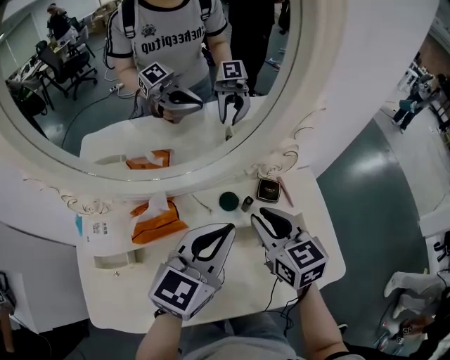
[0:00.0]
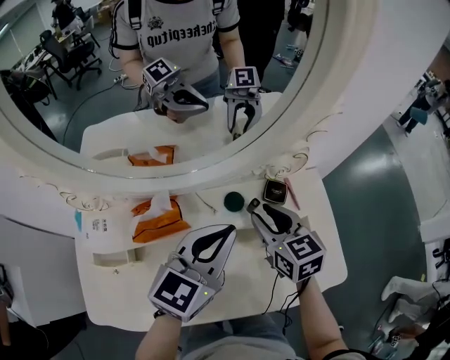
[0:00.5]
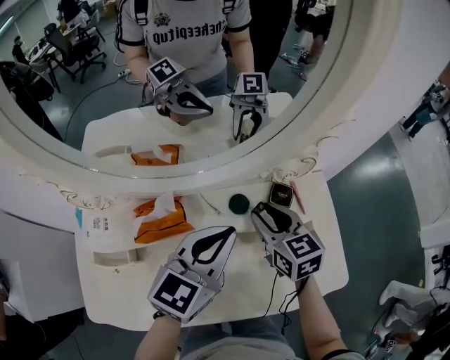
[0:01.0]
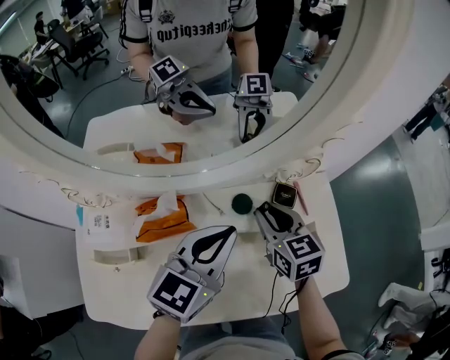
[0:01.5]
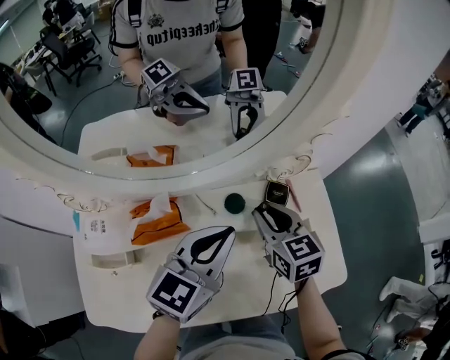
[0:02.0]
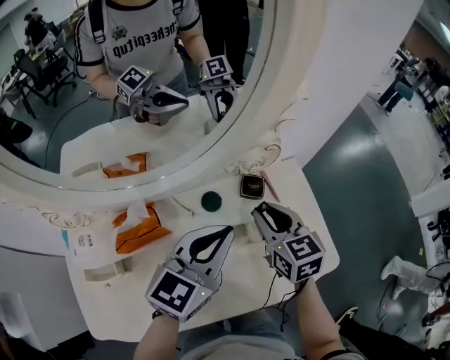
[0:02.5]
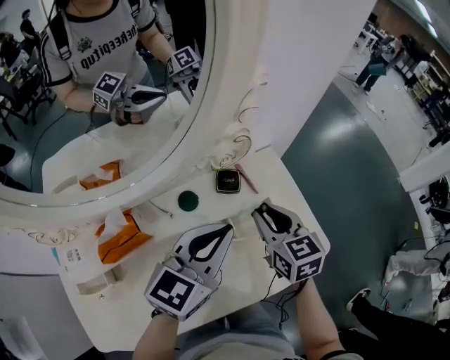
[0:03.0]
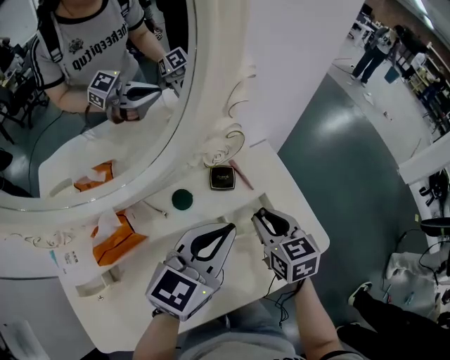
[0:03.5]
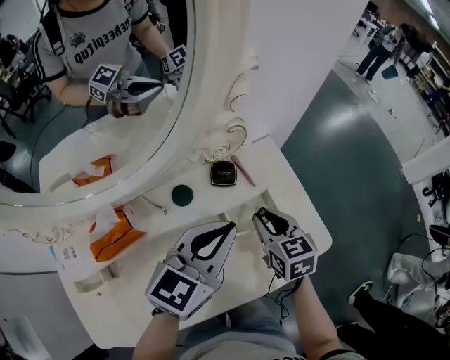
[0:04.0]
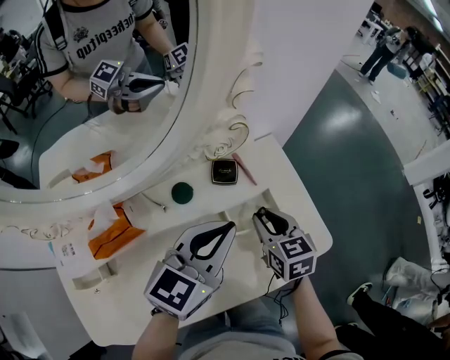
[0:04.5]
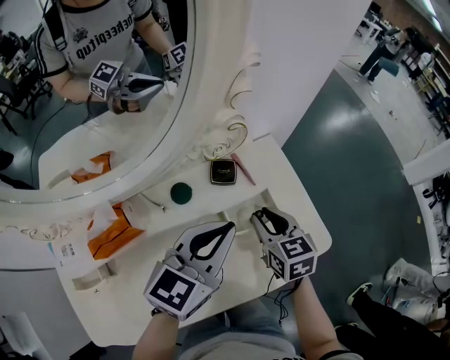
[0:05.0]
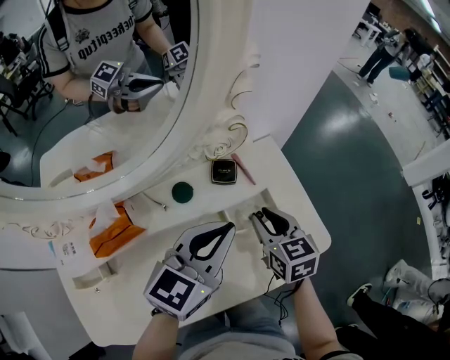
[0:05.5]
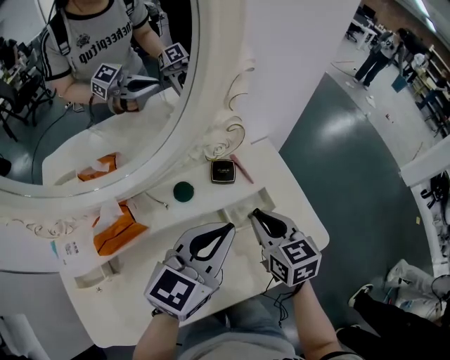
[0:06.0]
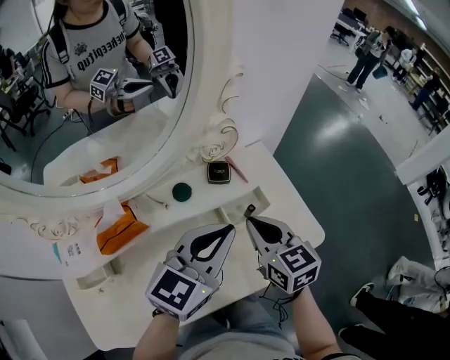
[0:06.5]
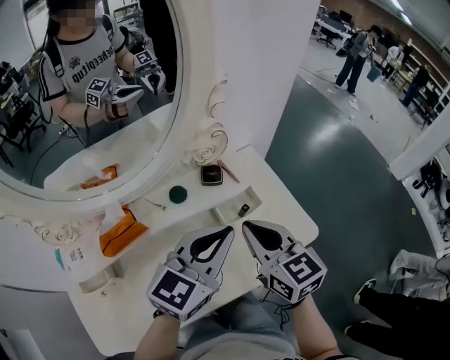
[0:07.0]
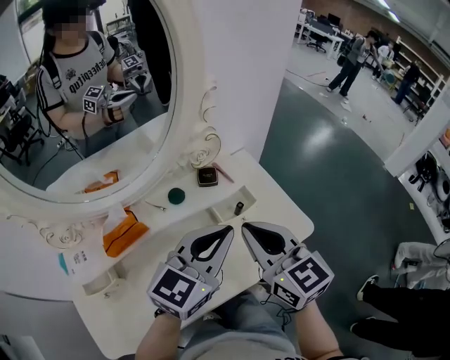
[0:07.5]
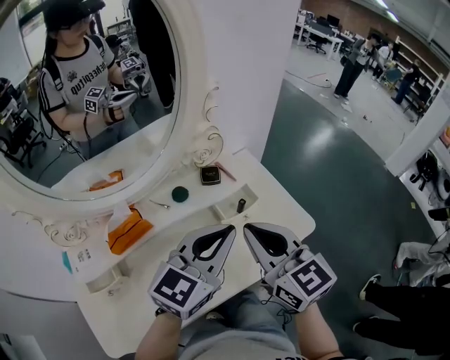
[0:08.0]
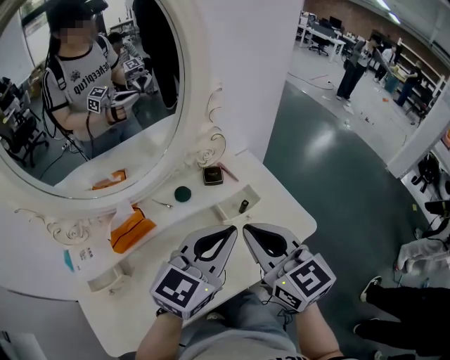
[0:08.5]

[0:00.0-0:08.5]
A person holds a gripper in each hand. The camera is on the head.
0.0 to 2.0 s: The right gripper ends up approximately 5 cm from where it was.
2.0 to 4.0 s: The left gripper moves to the right, approximately 10 cm; the right gripper heads to the right and downward, covering about 15 cm.
4.0 to 6.5 s: The right gripper heads upward and backward, covering roughly 10 cm, and closes.
6.5 to 8.5 s: The right gripper goes some 15 cm upward and backward. The left gripper shifts approximately 5 cm backward.

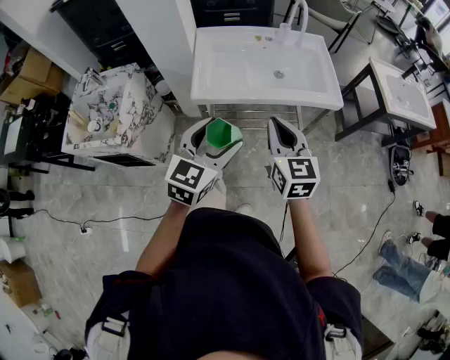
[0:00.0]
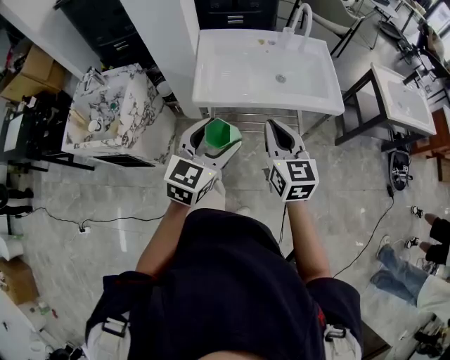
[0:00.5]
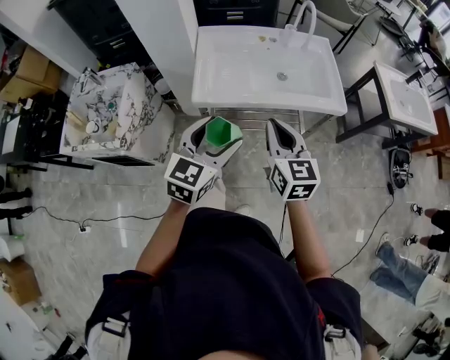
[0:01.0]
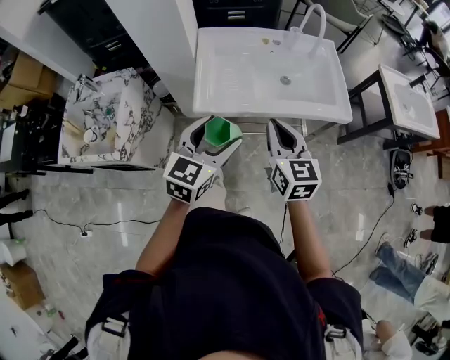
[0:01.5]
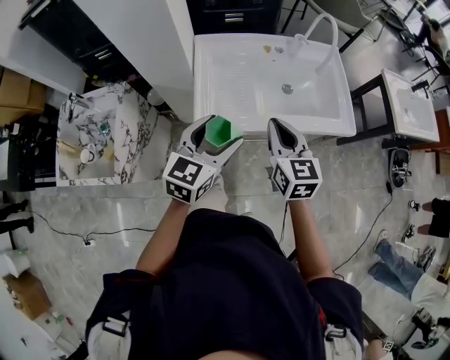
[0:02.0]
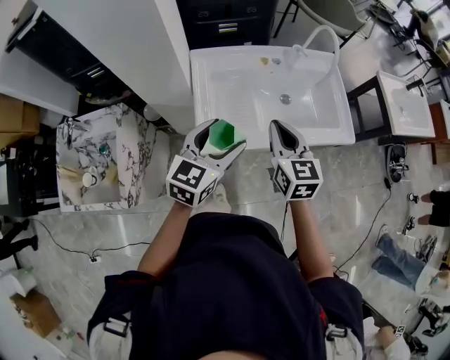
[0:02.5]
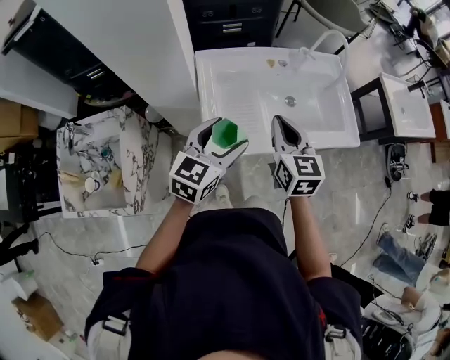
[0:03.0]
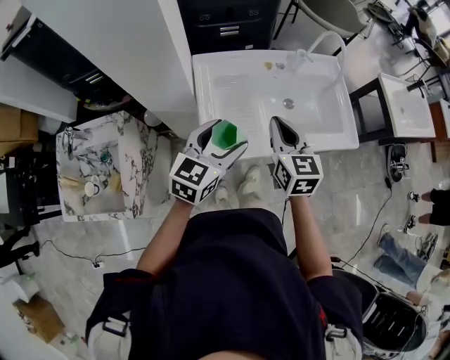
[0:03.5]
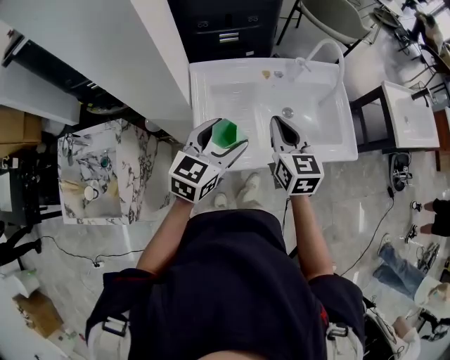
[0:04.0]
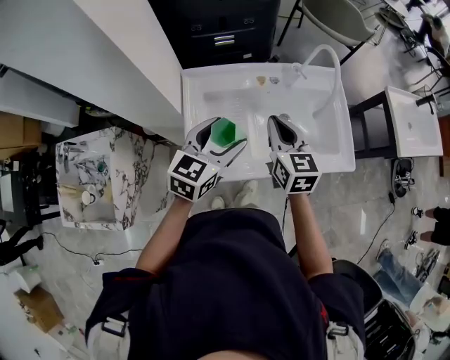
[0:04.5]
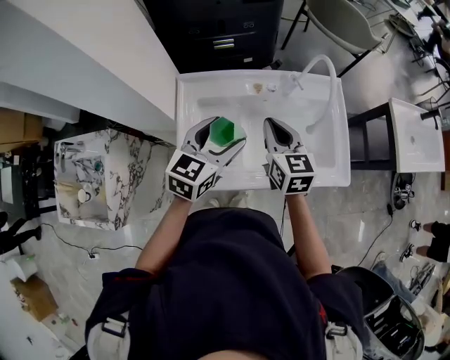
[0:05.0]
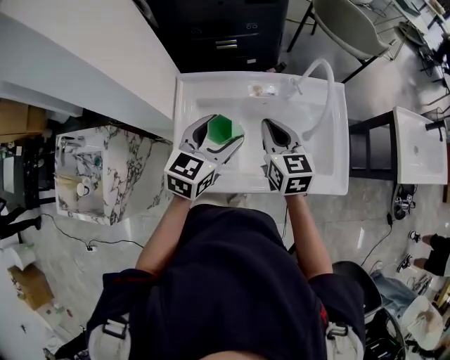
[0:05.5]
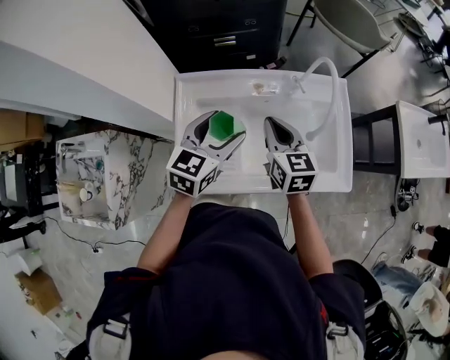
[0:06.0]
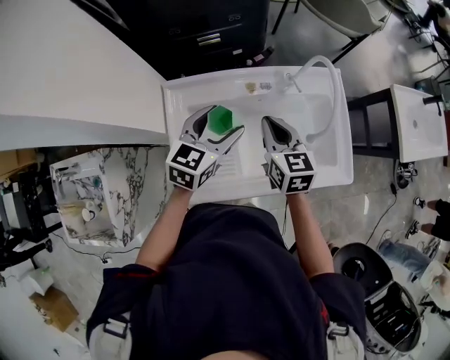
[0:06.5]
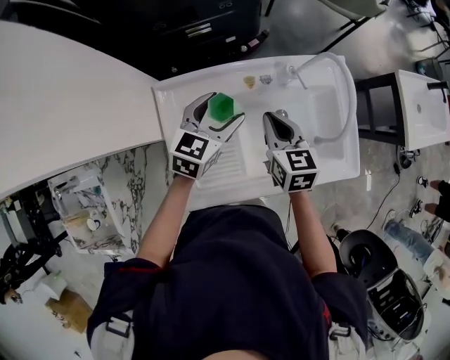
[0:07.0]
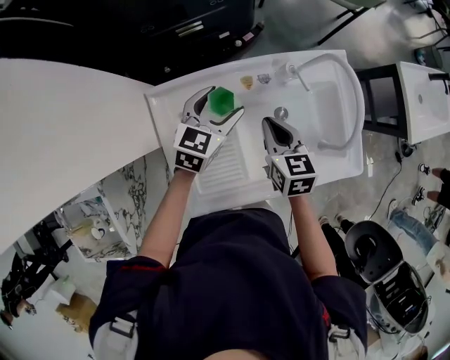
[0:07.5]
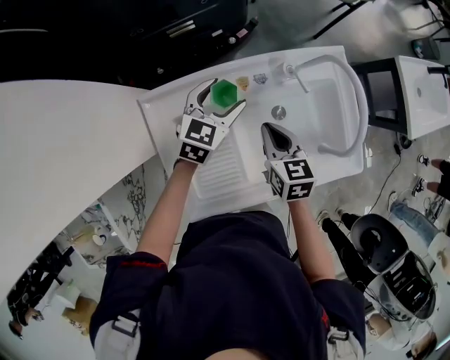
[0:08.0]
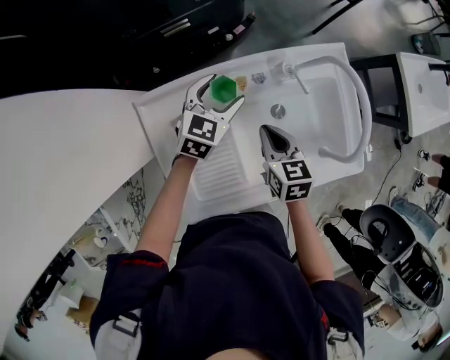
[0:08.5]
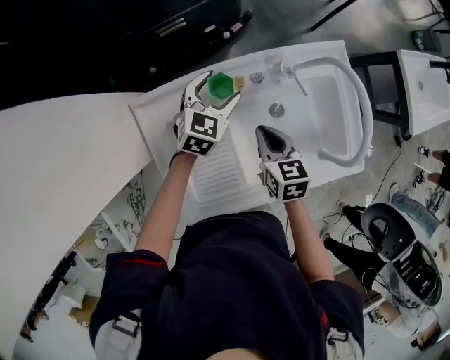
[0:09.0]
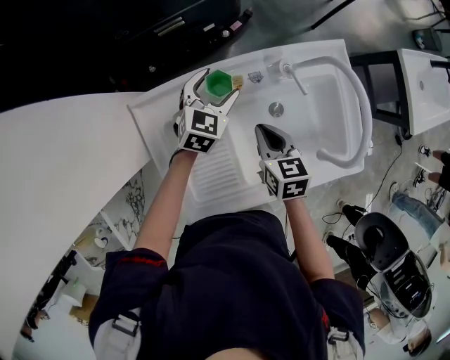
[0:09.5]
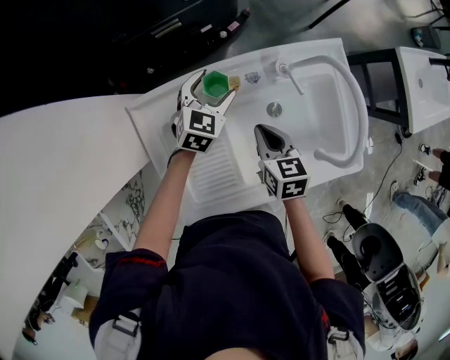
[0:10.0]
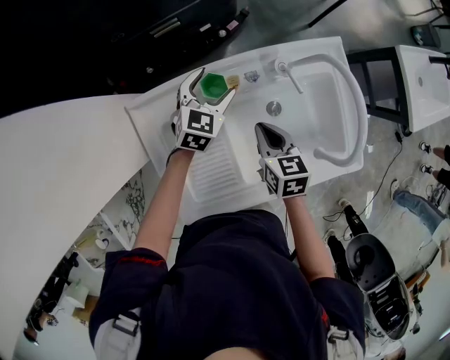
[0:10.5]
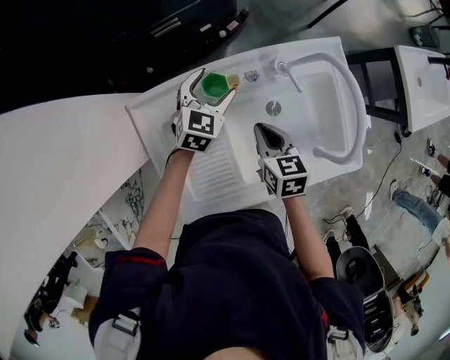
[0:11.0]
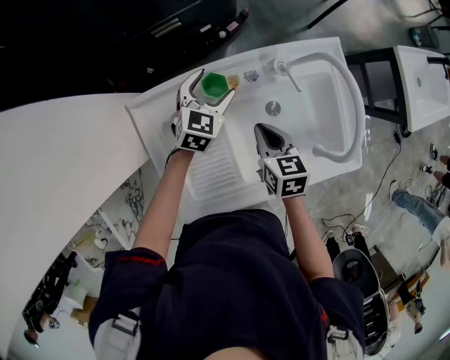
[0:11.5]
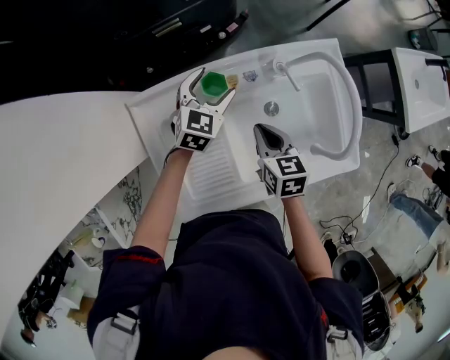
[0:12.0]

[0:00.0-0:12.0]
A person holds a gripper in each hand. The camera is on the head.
0.0 to 2.0 s: The two grippers go approximately 20 cm forward and to the left.
2.0 to 4.0 s: The two grippers go approximately 15 cm forward.
4.0 to 6.0 s: The left gripper moves forward and to the right, roughly 15 cm. The right gripper goes approximately 10 cm forward.
6.0 to 8.0 s: The left gripper heads forward and downward, covering about 20 cm. The right gripper moves downward, about 10 cm, and swivels about 20 degrees.
8.0 to 10.0 s: The left gripper is displaced downward by about 5 cm.
10.0 to 12.0 s: The grippers move only a little.

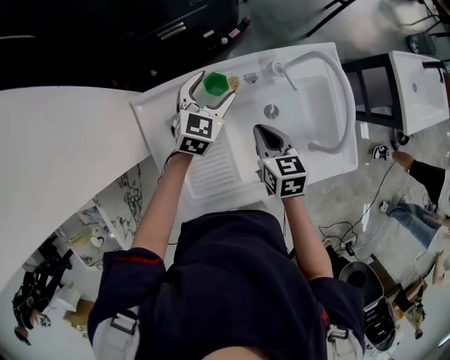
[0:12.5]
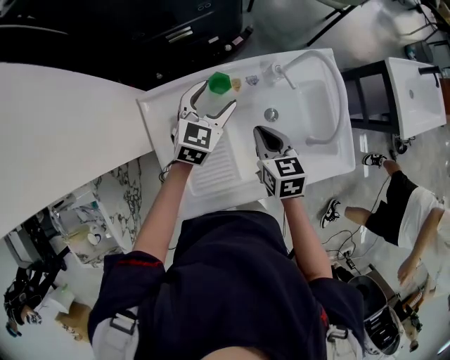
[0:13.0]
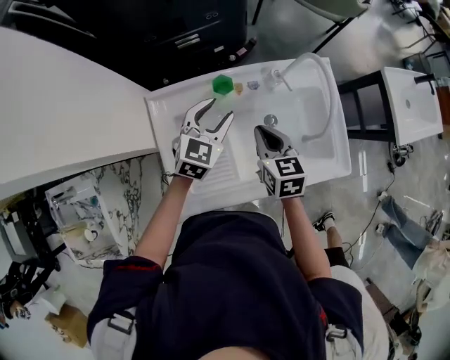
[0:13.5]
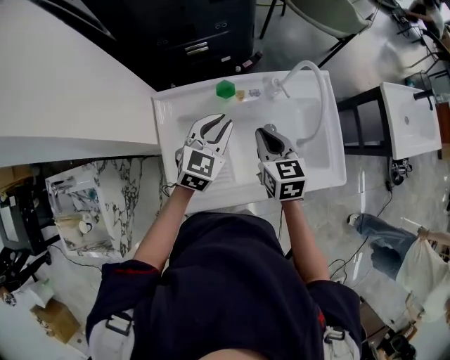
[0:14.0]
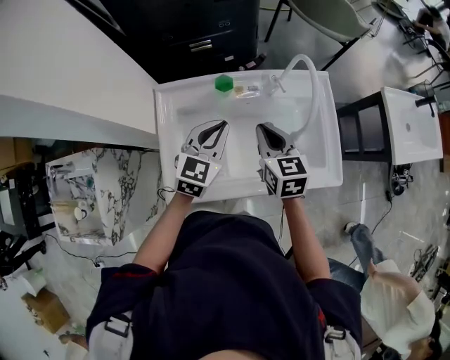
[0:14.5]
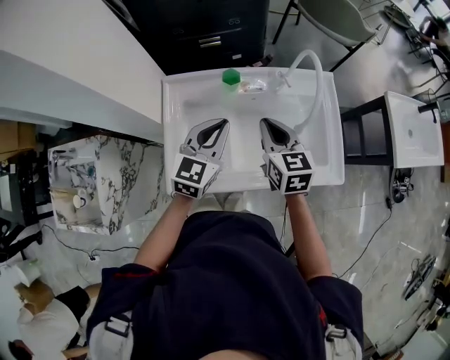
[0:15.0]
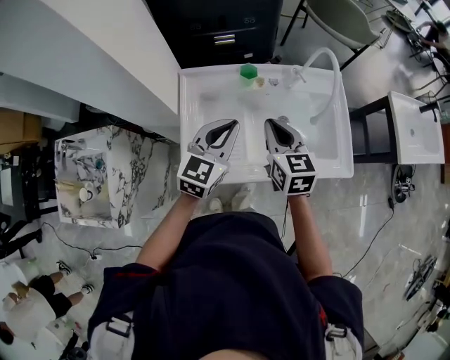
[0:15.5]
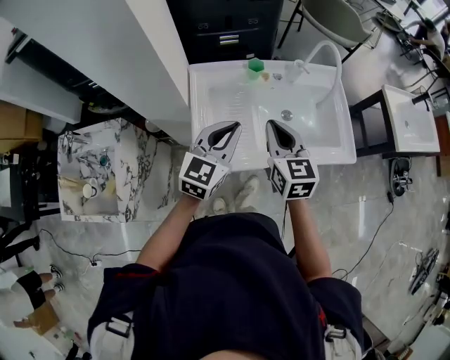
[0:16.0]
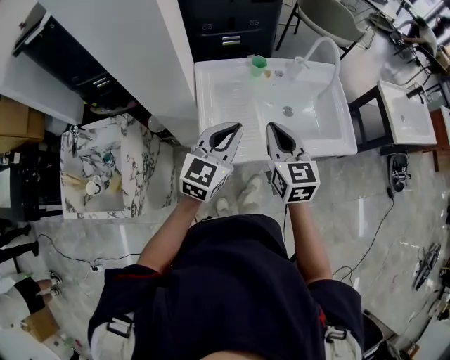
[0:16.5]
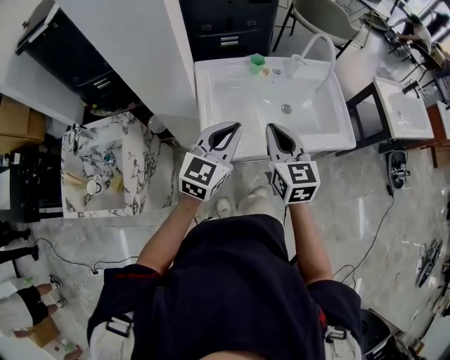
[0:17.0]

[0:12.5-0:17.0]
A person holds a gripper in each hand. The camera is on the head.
12.5 to 14.5 s: The left gripper is displaced backward and upward by some 20 cm, and closes, while the right gripper moves upward, about 10 cm.
14.5 to 17.0 s: The left gripper travels backward by approximately 25 cm. The right gripper moves backward and to the left, some 25 cm.

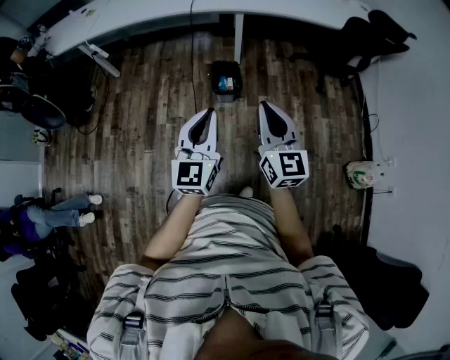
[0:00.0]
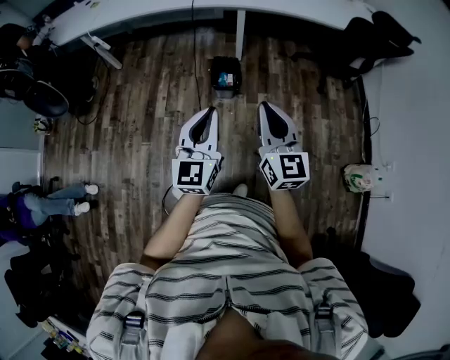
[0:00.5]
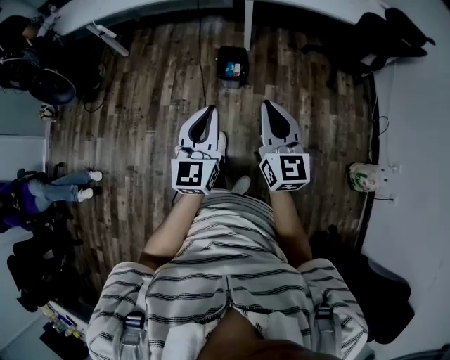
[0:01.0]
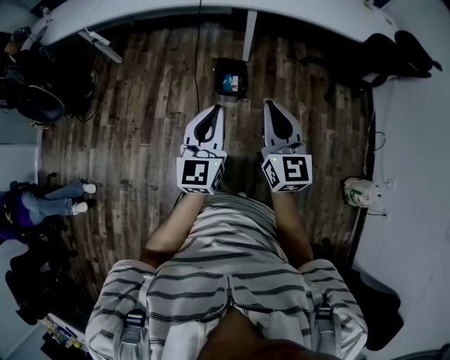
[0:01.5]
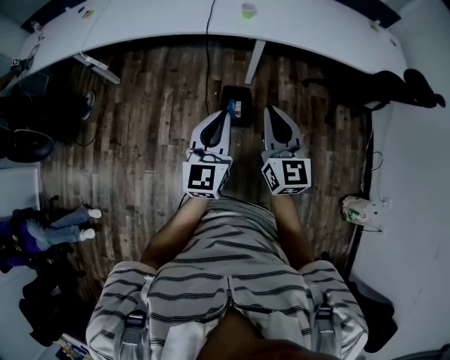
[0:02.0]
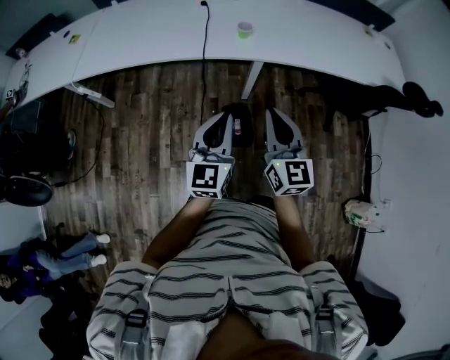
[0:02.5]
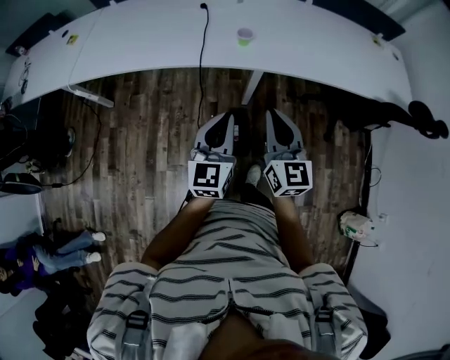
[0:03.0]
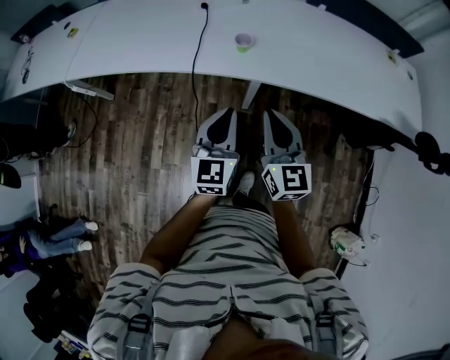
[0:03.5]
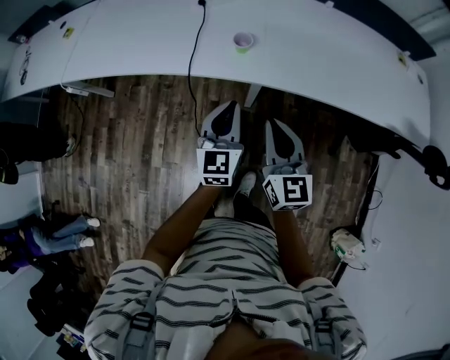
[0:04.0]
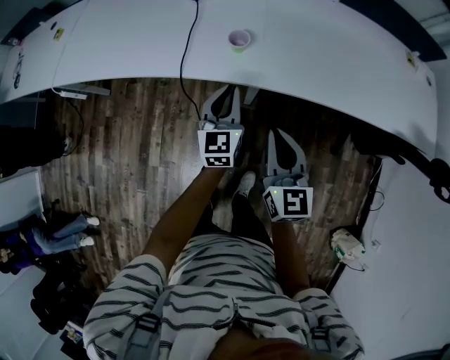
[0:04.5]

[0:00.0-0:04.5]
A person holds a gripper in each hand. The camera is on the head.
0.0 to 2.0 s: The two grippers go about 30 cm forward.
2.0 to 4.5 s: The grippers both shift forward by about 40 cm.
